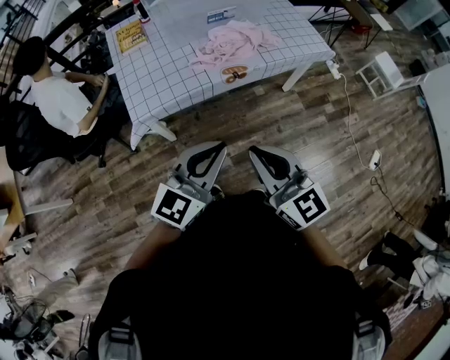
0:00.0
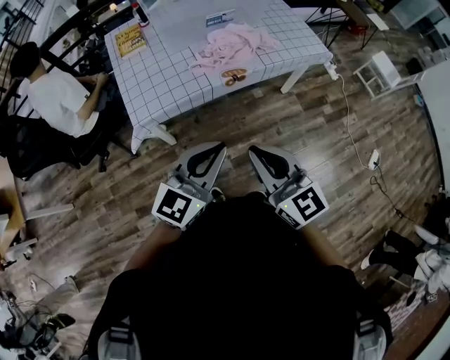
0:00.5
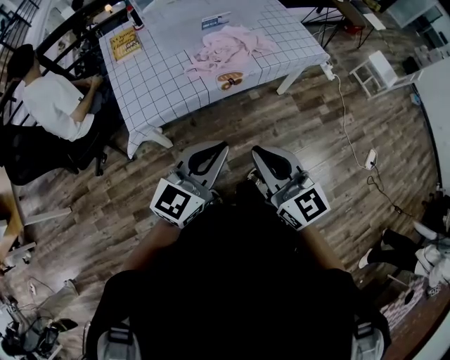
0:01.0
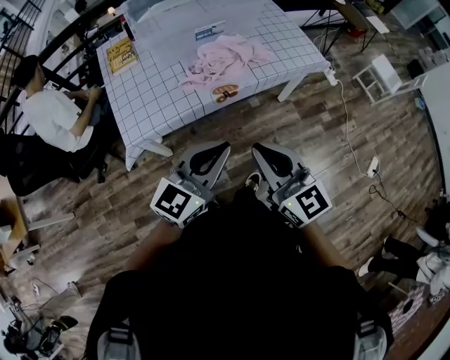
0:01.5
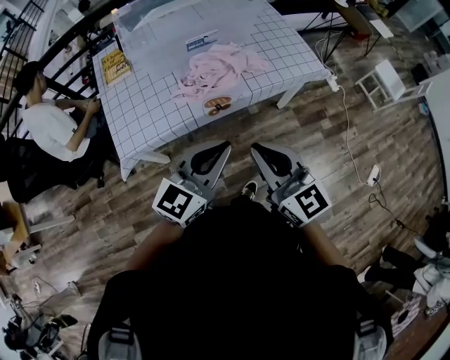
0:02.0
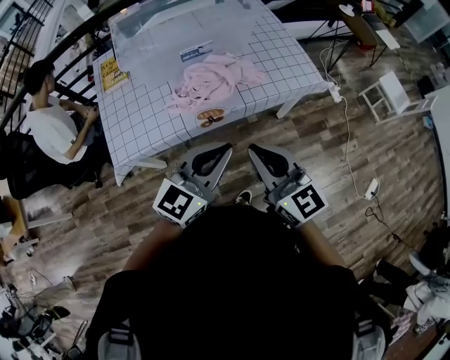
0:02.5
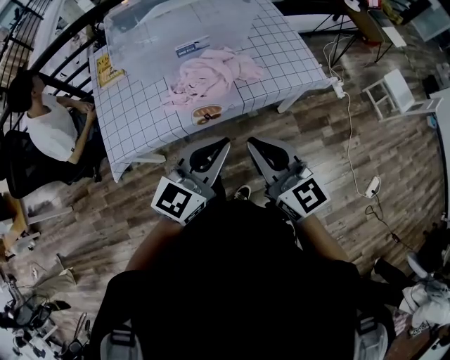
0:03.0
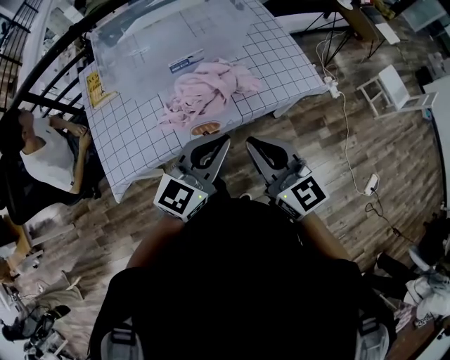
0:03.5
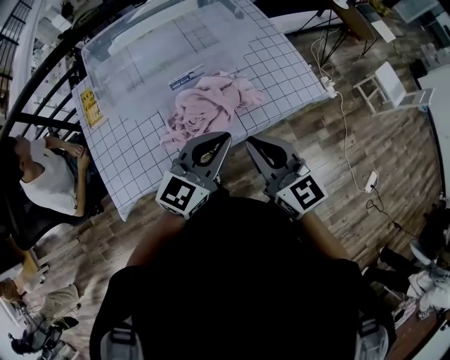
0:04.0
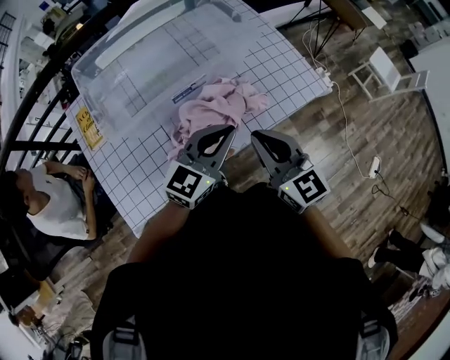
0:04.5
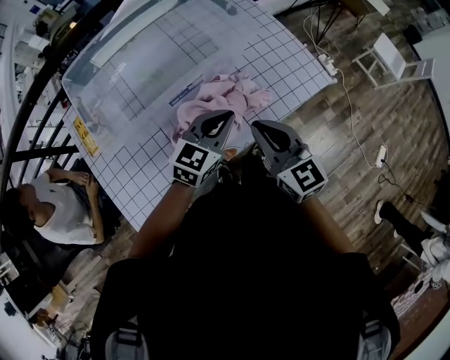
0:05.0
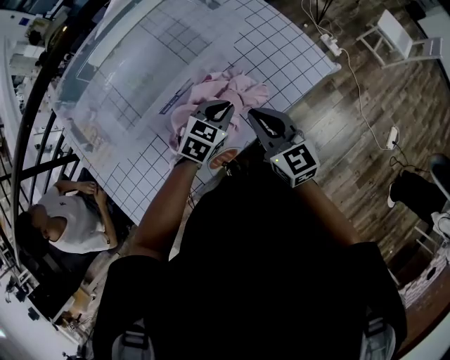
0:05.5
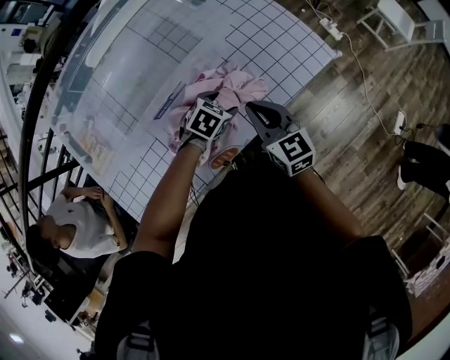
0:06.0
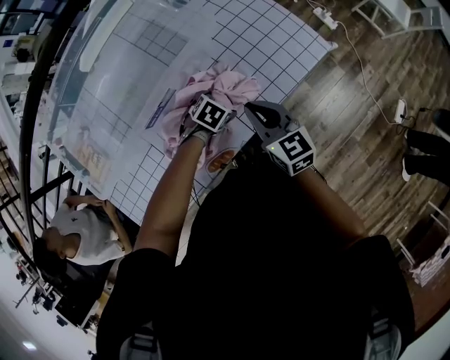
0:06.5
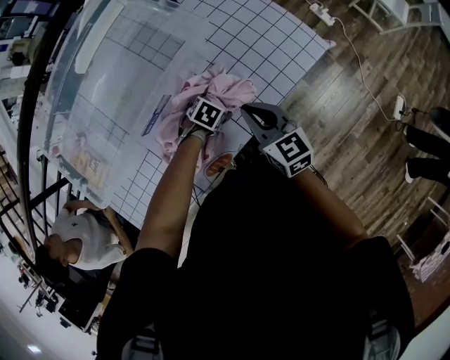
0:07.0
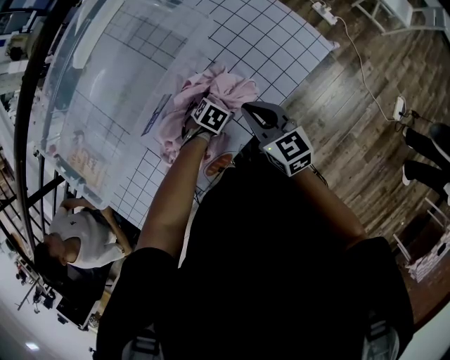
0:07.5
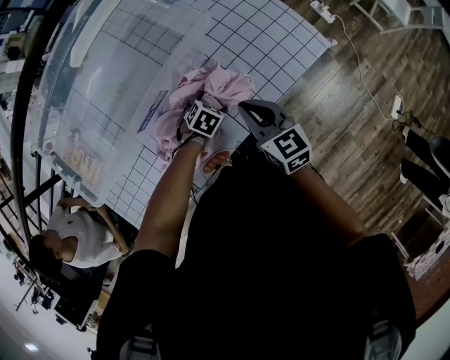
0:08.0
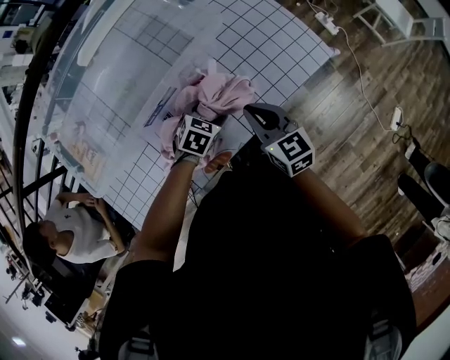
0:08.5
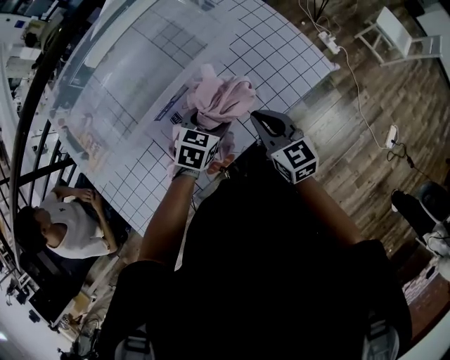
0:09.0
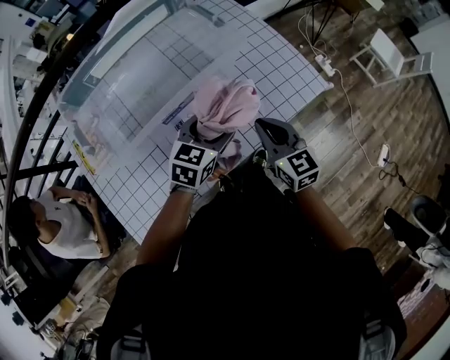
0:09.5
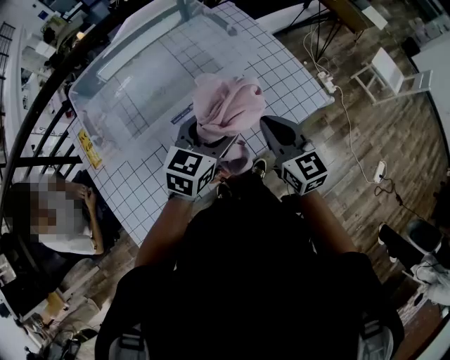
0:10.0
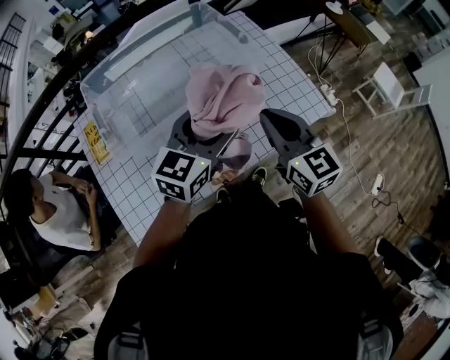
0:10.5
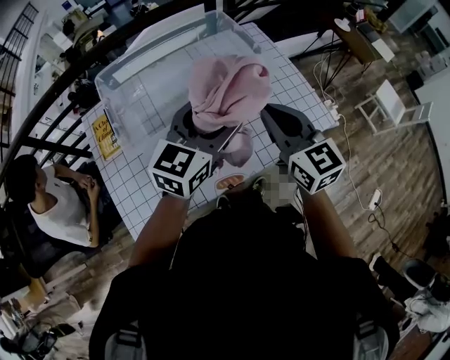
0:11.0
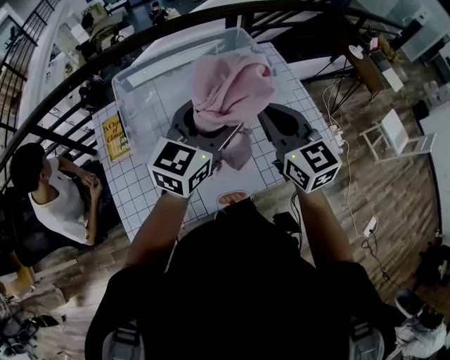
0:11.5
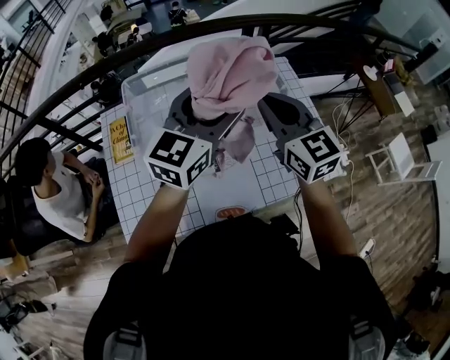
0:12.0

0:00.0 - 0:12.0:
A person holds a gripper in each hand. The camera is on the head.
0:00.0 - 0:02.0: The grippers both shift forward and to the right by approximately 20 cm.
0:02.0 - 0:04.0: Both grippers travel together forward, roughly 25 cm.
0:04.0 - 0:06.0: The right gripper heads forward and downward, covering roughly 25 cm, and changes its angle by some 20 degrees. Meanwhile the left gripper is displaced downward and forward by roughly 35 cm, points its fingers roughly 60 degrees further downward, and opens its fingers.
0:06.0 - 0:08.0: The left gripper is displaced downward by roughly 10 cm. Meanwhile the right gripper shifts by about 5 cm.
0:08.0 - 0:10.0: The right gripper heads upward, covering about 15 cm, while the left gripper goes some 35 cm upward, and angles its fingers upward, by some 50 degrees.
0:10.0 - 0:12.0: The grippers both shift upward, to the left and forward by roughly 25 cm. The right gripper turns by some 20 degrees; the left gripper turns by about 30 degrees.

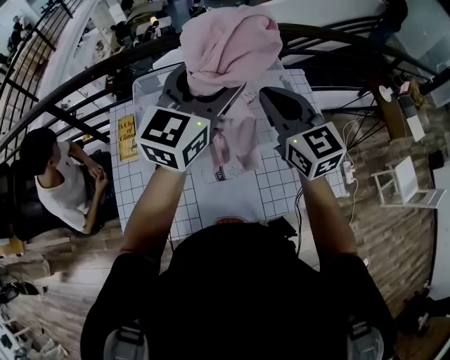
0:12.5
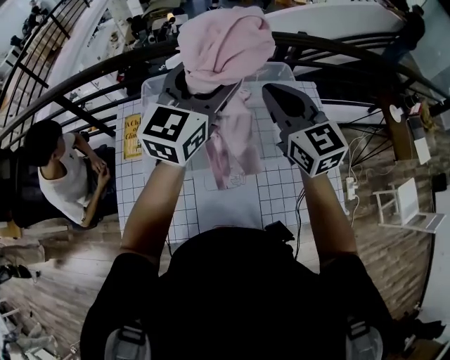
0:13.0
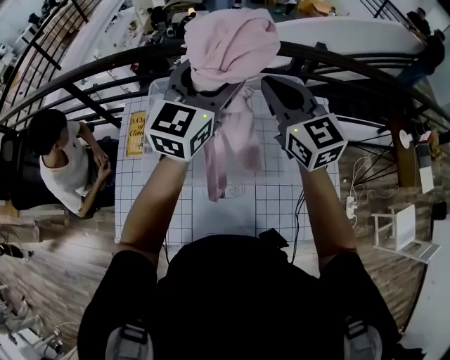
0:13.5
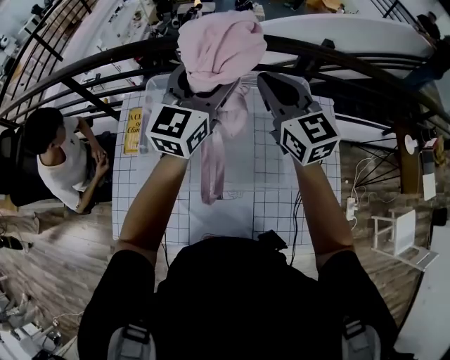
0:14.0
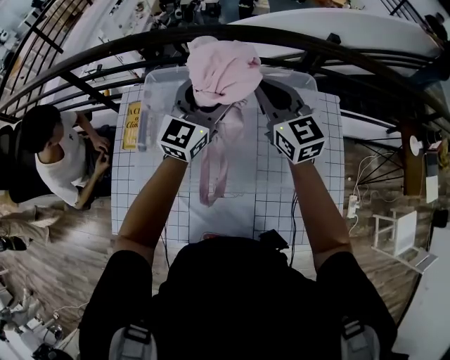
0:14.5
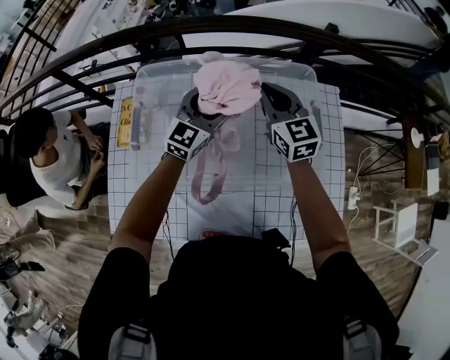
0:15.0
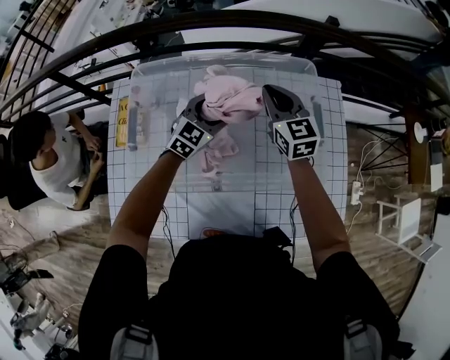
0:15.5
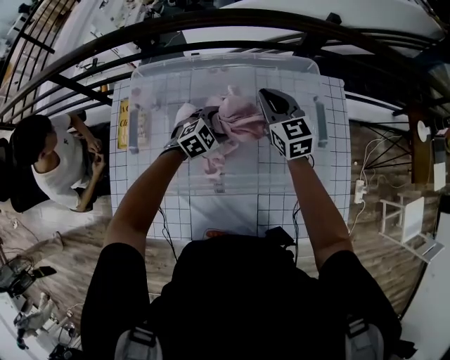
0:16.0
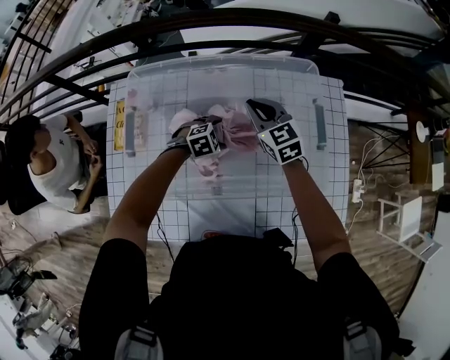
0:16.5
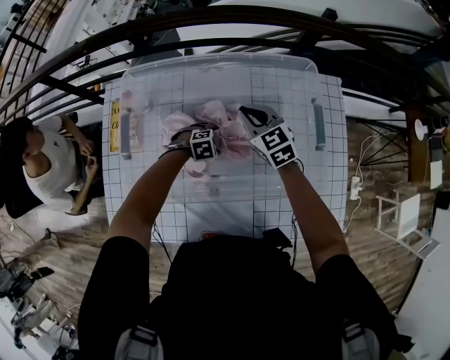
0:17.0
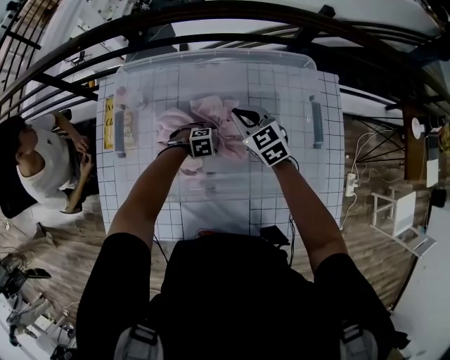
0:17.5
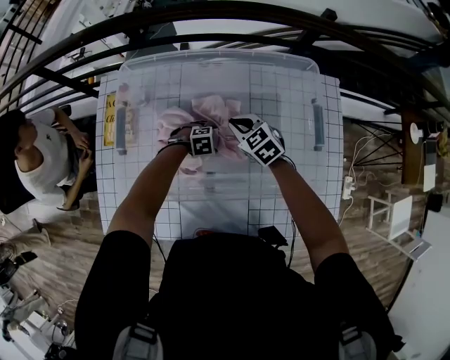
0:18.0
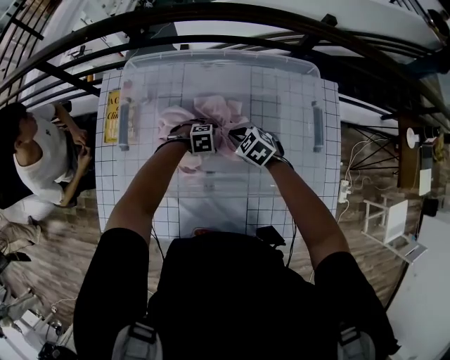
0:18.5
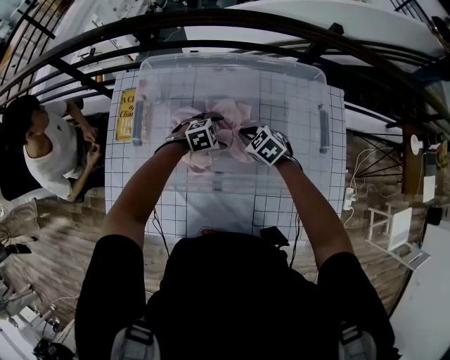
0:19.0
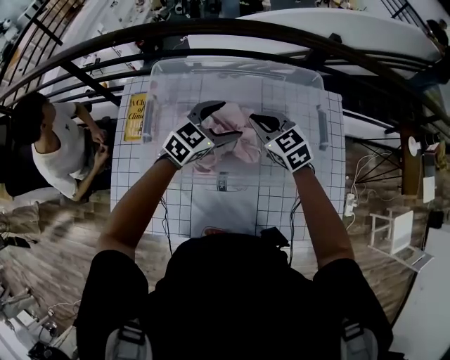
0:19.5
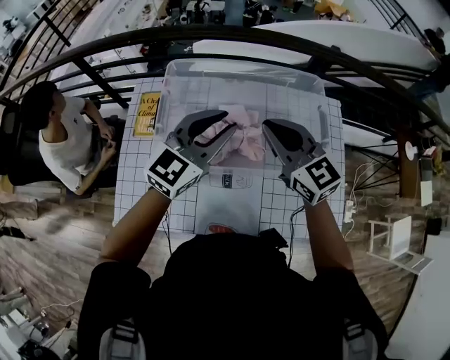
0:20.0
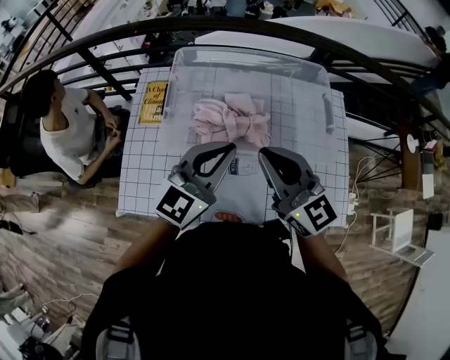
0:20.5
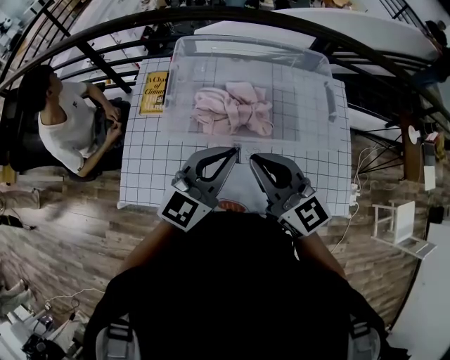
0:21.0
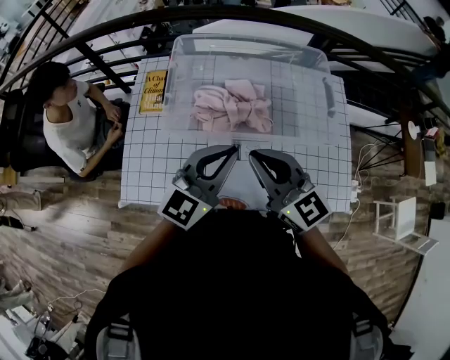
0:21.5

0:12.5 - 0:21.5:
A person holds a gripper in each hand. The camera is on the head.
0:12.5 - 0:14.5: Both grippers move forward and downward, some 20 cm.
0:14.5 - 0:17.0: The left gripper shifts about 40 cm downward, and tilts its fingers about 70 degrees downward. The right gripper moves downward, roughly 20 cm, and turns by approximately 20 degrees.
0:17.0 - 0:19.5: The left gripper moves upward, some 25 cm, and tilts its fingers approximately 40 degrees upward; the right gripper is displaced upward by some 5 cm.
0:19.5 - 0:21.5: The two grippers go some 30 cm backward and upward. The left gripper swivels some 30 degrees, and closes. The right gripper swivels approximately 30 degrees.

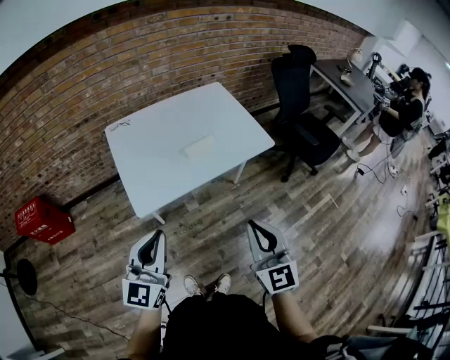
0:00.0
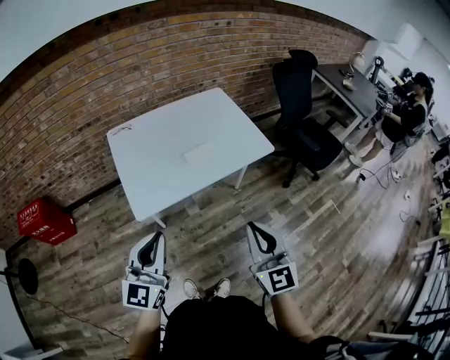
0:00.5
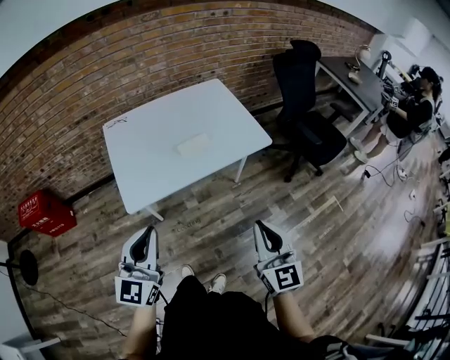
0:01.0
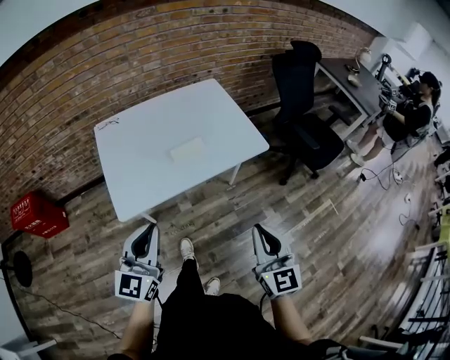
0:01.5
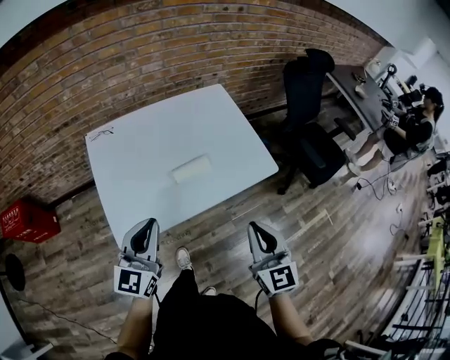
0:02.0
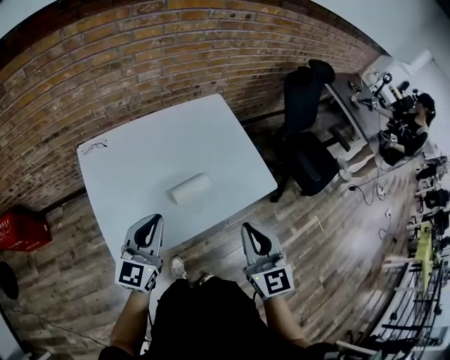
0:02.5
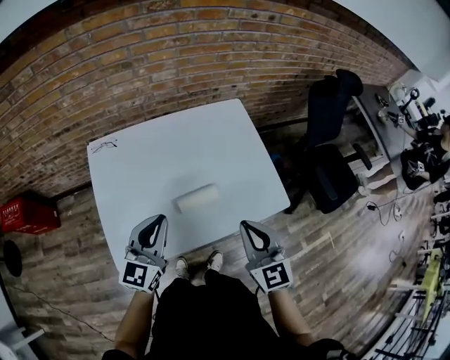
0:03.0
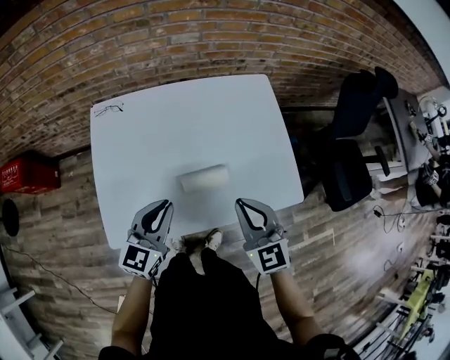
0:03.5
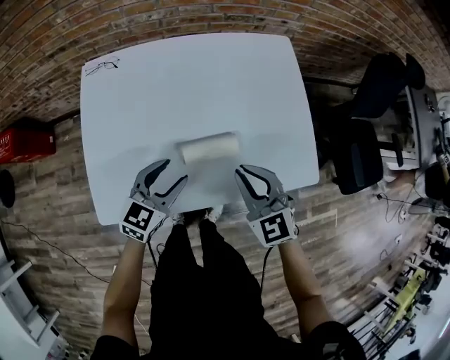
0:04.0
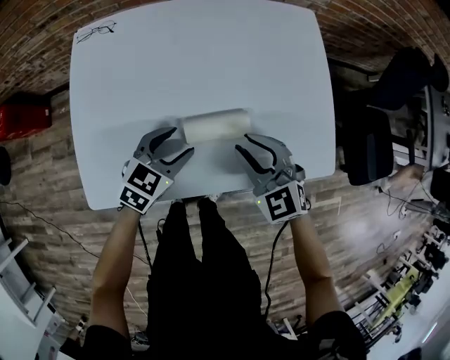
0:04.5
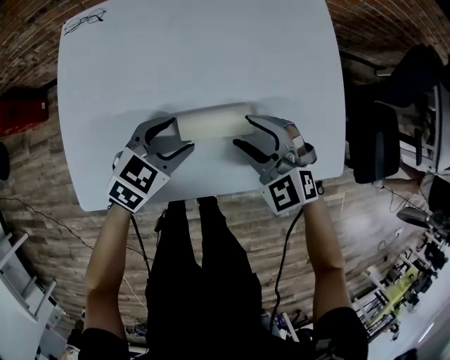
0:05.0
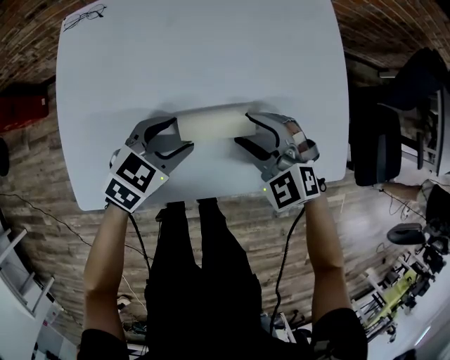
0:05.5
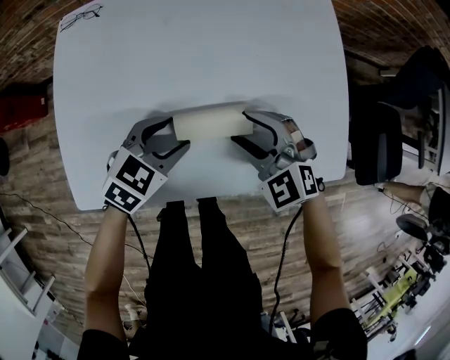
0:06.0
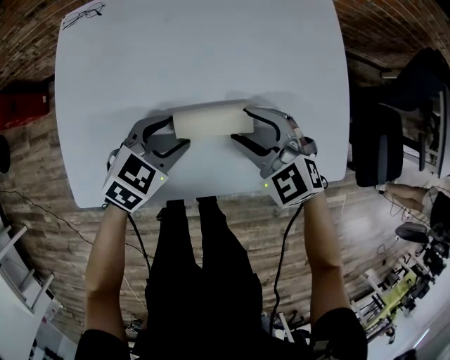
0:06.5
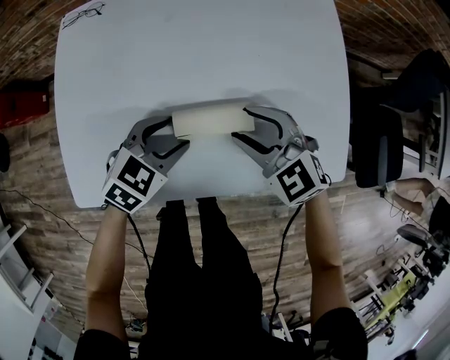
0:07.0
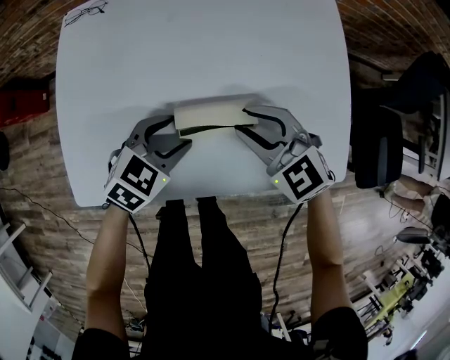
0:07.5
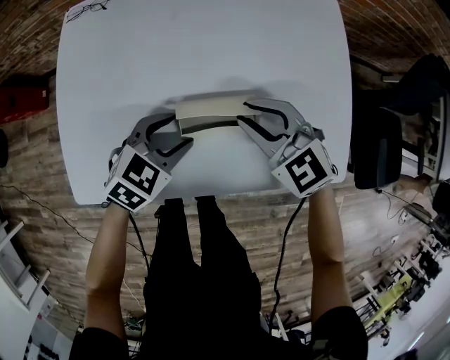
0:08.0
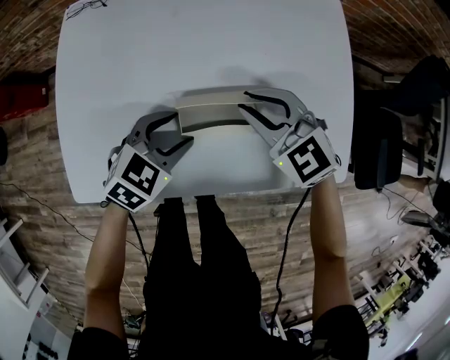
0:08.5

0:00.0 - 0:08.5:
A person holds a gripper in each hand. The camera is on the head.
0:00.0 - 0:02.0: The two grippers go approximately 20 cm forward.
0:02.0 - 0:04.0: The left gripper goes about 25 cm downward and forward, rotates about 20 degrees, and opens, while the right gripper heads forward and downward, covering some 25 cm, and turns by roughly 50 degrees.
0:04.0 - 0:06.5: The right gripper shifts approximately 10 cm downward and forward, rotates approximately 20 degrees, and opens its fingers. Meanwhile the left gripper travels downward by about 10 cm, and rotates about 20 degrees.
0:06.5 - 0:08.5: The right gripper closes.
